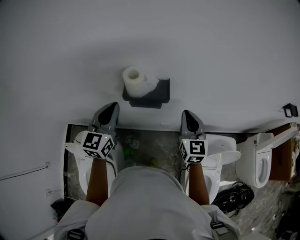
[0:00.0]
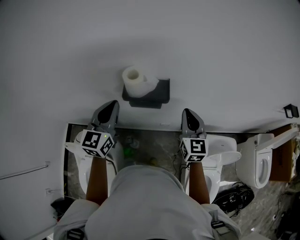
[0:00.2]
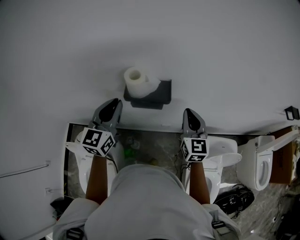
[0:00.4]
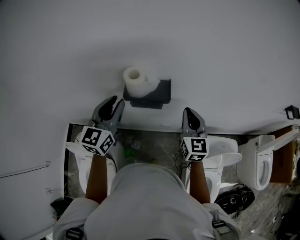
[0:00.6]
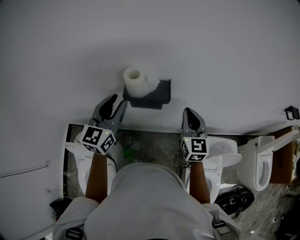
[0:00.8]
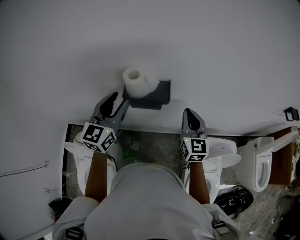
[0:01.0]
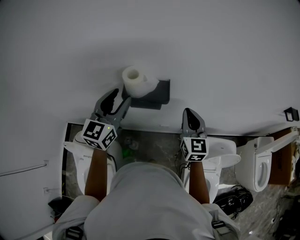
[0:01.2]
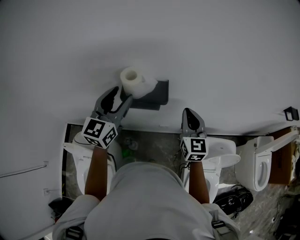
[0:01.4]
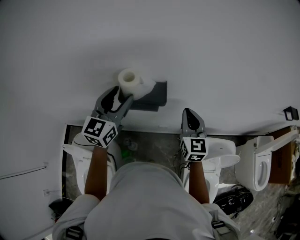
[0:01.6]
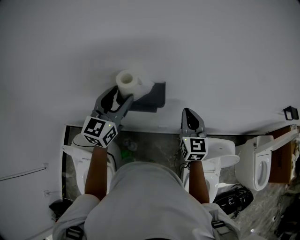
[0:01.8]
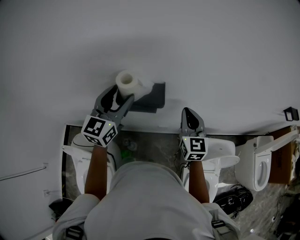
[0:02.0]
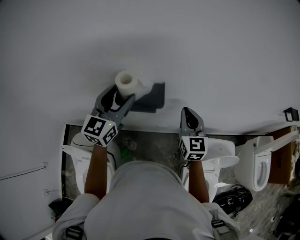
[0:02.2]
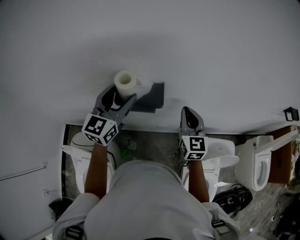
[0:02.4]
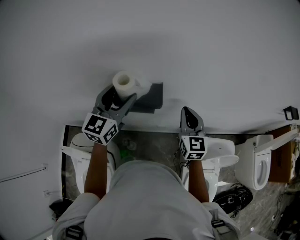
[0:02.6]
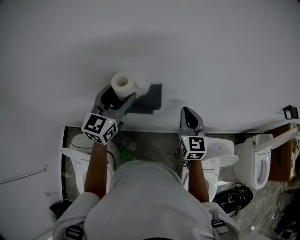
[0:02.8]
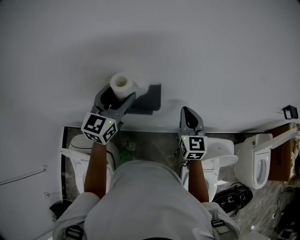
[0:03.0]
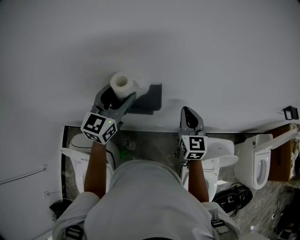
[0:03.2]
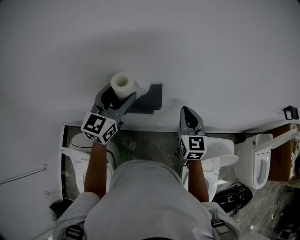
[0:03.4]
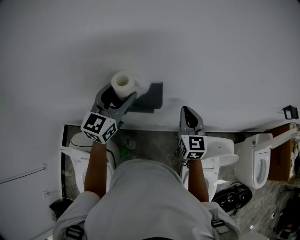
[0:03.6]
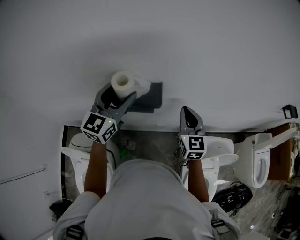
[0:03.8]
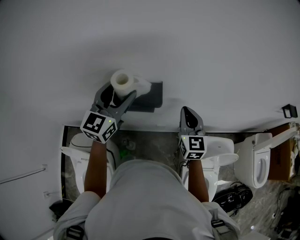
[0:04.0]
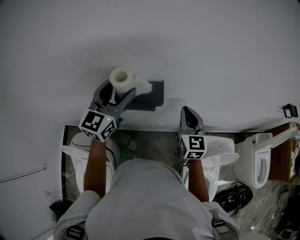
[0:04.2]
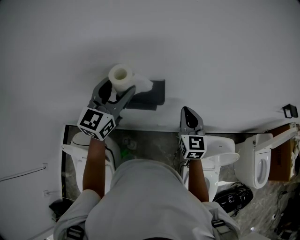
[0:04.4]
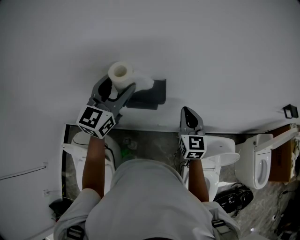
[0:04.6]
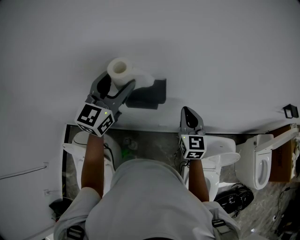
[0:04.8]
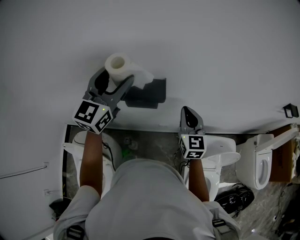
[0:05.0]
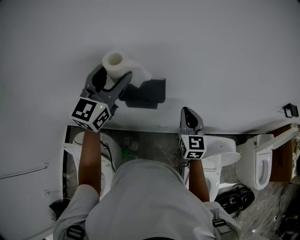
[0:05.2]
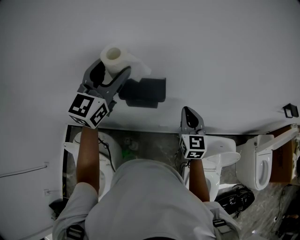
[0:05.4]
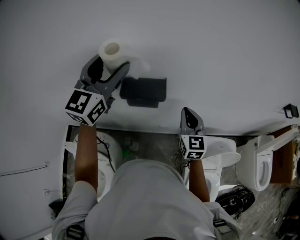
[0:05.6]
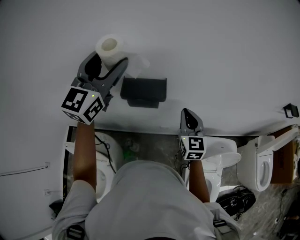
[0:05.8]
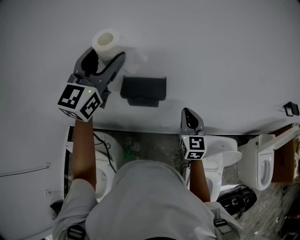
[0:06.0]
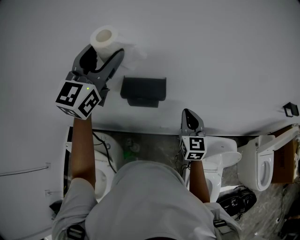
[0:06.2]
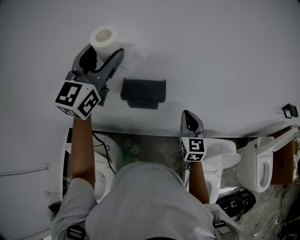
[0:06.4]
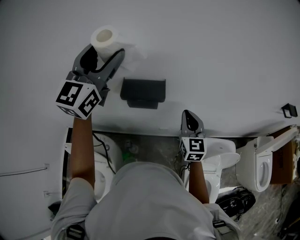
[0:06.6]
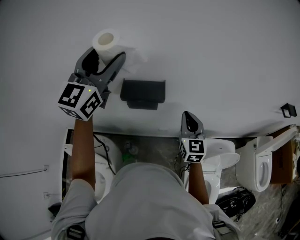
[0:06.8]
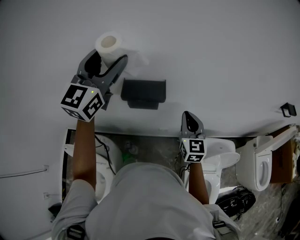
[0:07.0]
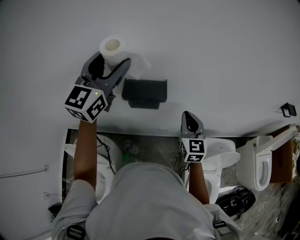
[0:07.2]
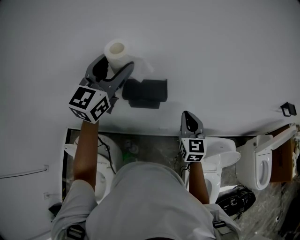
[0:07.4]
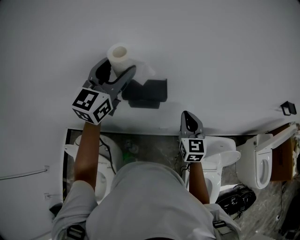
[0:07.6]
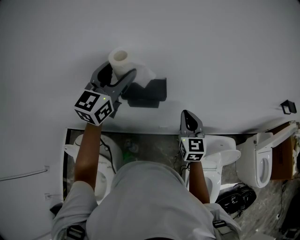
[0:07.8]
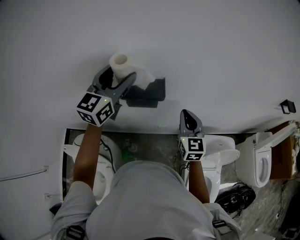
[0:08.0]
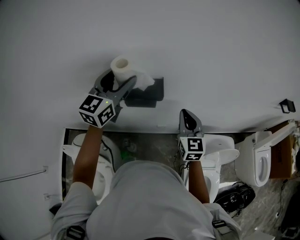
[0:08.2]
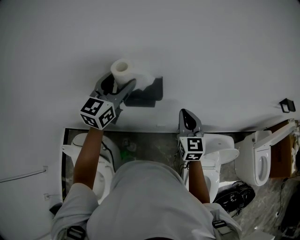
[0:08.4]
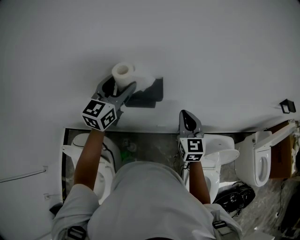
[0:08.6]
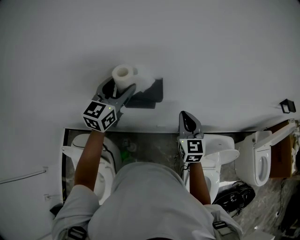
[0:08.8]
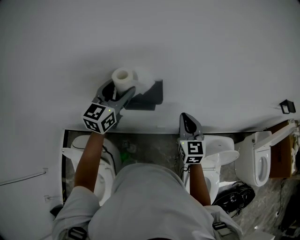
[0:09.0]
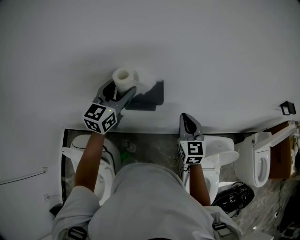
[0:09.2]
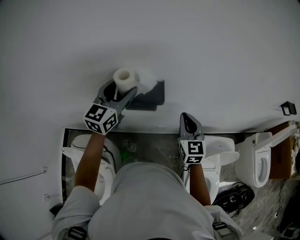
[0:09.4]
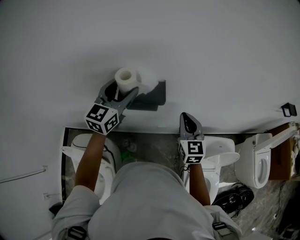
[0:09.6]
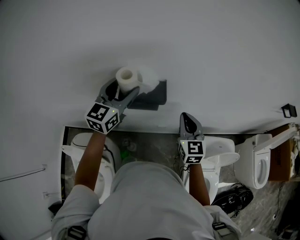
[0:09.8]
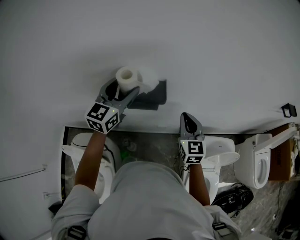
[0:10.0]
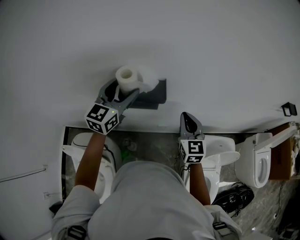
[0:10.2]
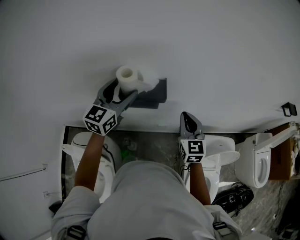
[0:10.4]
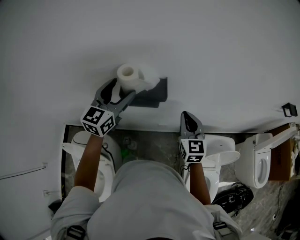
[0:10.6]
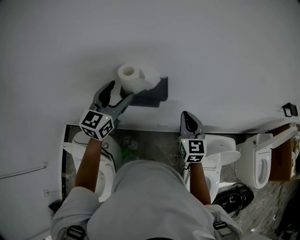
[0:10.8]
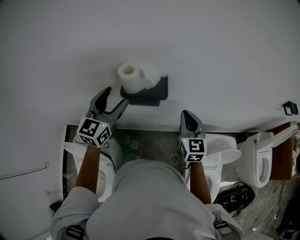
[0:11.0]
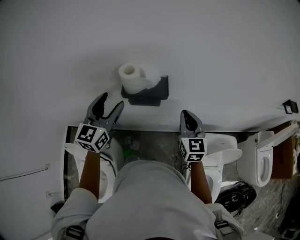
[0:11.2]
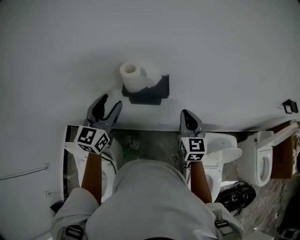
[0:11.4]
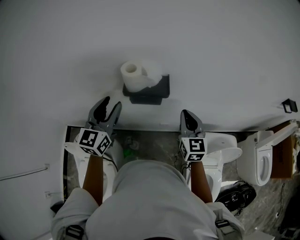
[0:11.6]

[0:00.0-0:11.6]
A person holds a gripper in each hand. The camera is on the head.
0:00.0 to 0:01.4: The left gripper ends up roughly 5 cm from where it was, and opens up.
0:01.4 to 0:02.8: The left gripper changes place by some 5 cm.
0:02.8 to 0:04.4: The grippers stay close to where they were, moving slightly.
0:04.4 to 0:05.8: The left gripper goes about 10 cm upward.
0:05.8 to 0:07.2: The grippers move only a little.
0:07.2 to 0:08.8: The left gripper is displaced downward by about 15 cm.
0:08.8 to 0:10.2: The grippers stay close to where they were, moving slightly.
0:10.2 to 0:11.6: The left gripper shifts about 10 cm backward and to the left, and closes its fingers.

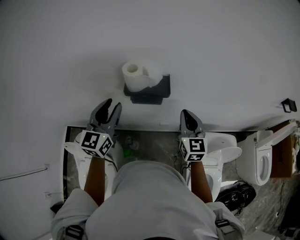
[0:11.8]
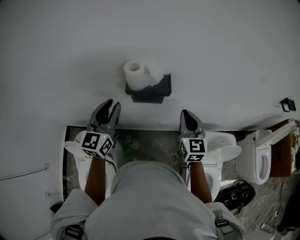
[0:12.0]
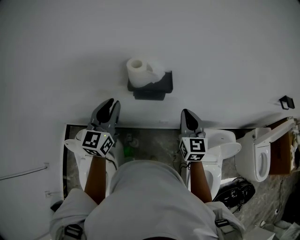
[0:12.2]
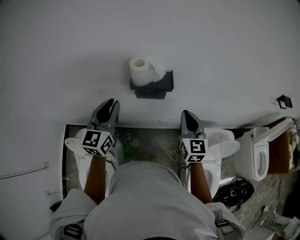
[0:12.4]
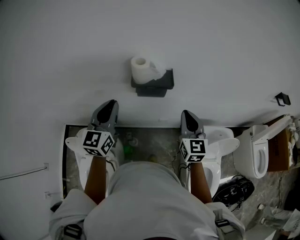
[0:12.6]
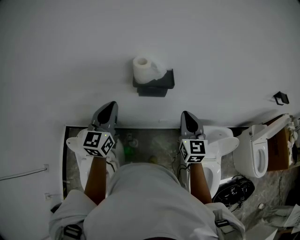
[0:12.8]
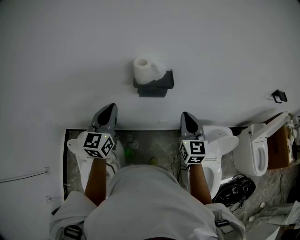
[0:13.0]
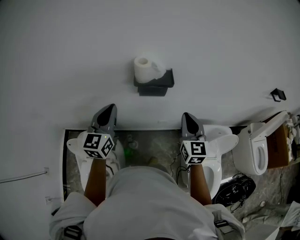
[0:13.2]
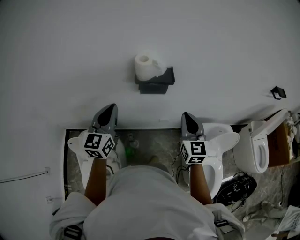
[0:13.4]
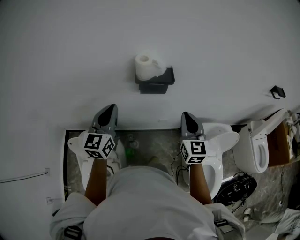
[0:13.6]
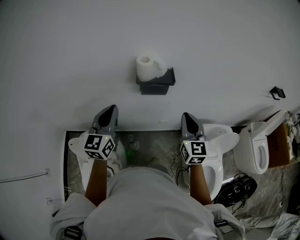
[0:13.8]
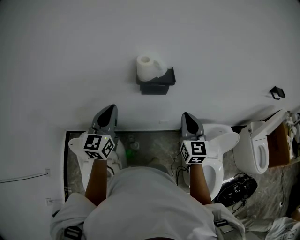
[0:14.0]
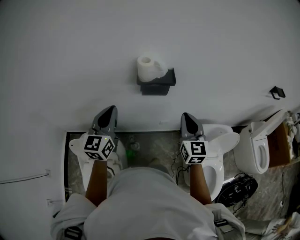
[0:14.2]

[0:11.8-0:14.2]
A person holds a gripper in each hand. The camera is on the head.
0:11.8 to 0:13.0: Both grippers move backward, about 10 cm. The left gripper closes.
0:13.0 to 0:14.2: The grippers stay close to where they were, moving slightly.

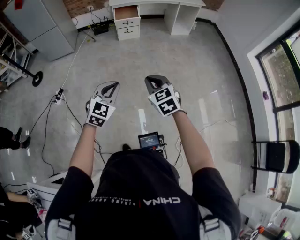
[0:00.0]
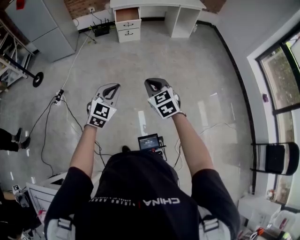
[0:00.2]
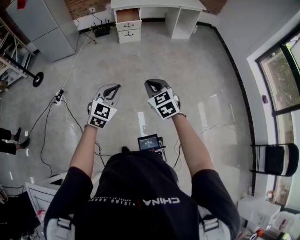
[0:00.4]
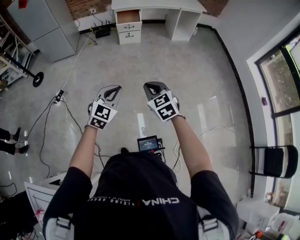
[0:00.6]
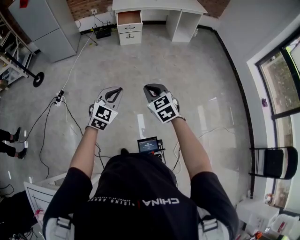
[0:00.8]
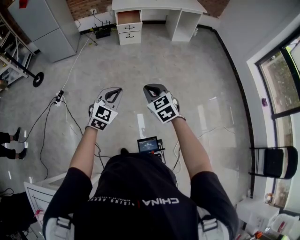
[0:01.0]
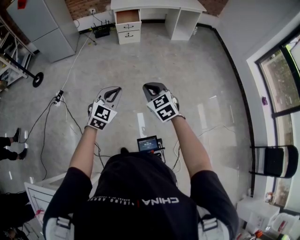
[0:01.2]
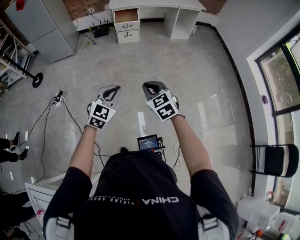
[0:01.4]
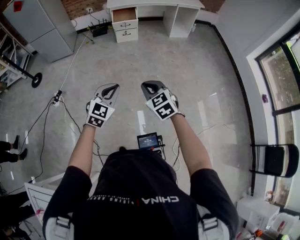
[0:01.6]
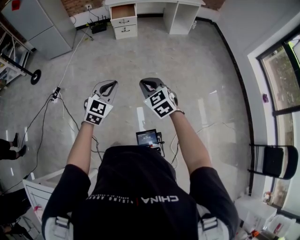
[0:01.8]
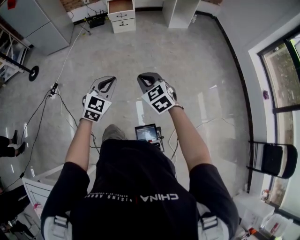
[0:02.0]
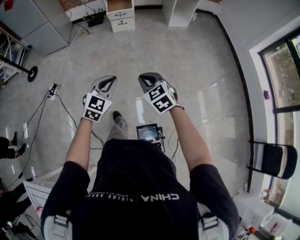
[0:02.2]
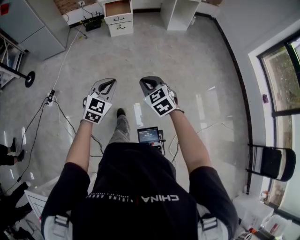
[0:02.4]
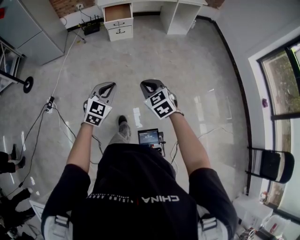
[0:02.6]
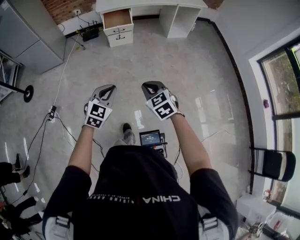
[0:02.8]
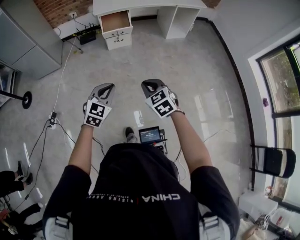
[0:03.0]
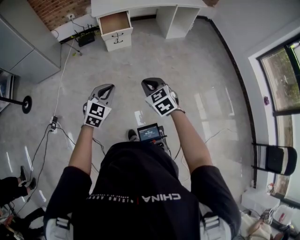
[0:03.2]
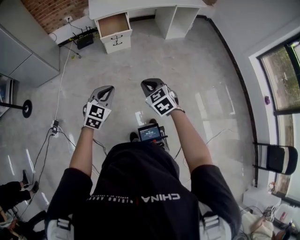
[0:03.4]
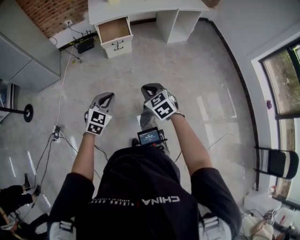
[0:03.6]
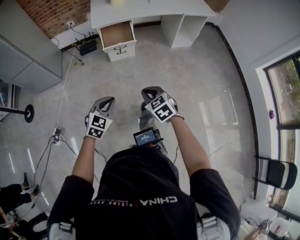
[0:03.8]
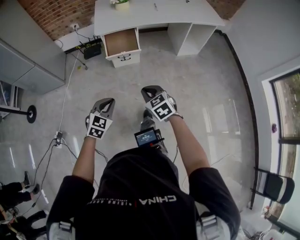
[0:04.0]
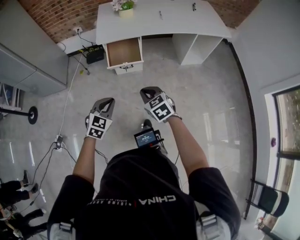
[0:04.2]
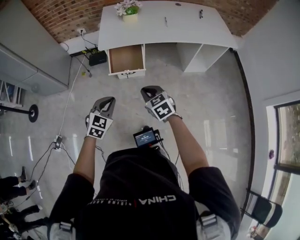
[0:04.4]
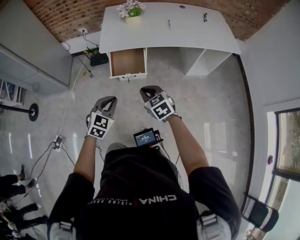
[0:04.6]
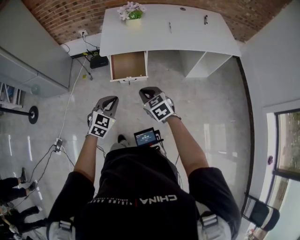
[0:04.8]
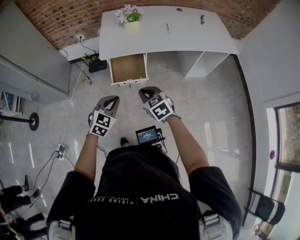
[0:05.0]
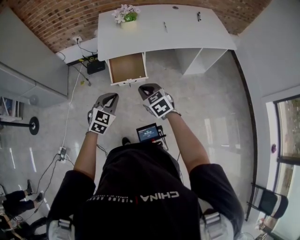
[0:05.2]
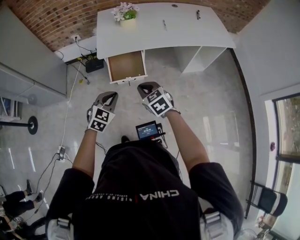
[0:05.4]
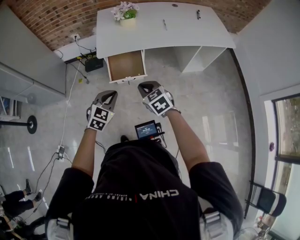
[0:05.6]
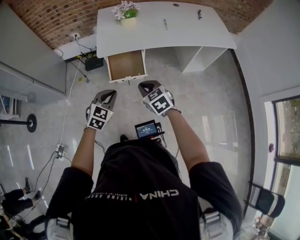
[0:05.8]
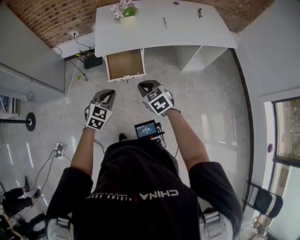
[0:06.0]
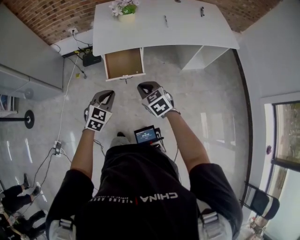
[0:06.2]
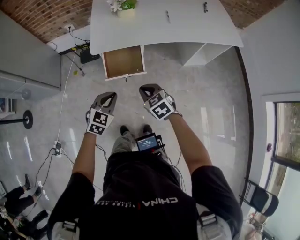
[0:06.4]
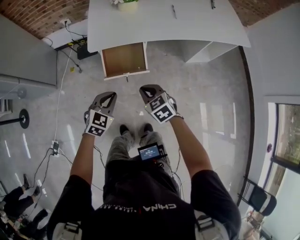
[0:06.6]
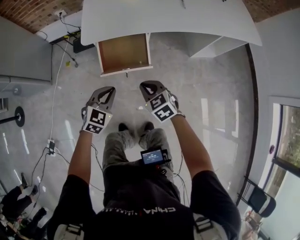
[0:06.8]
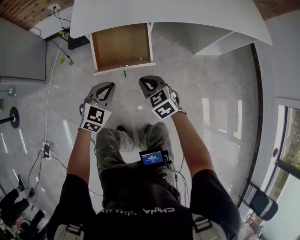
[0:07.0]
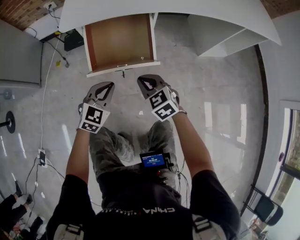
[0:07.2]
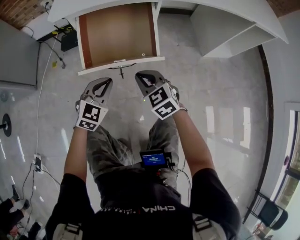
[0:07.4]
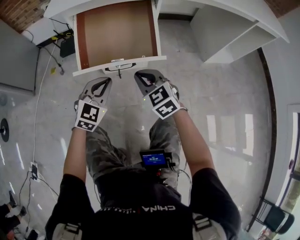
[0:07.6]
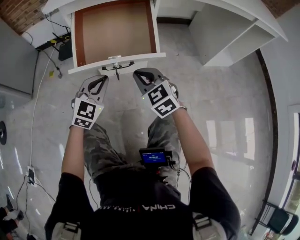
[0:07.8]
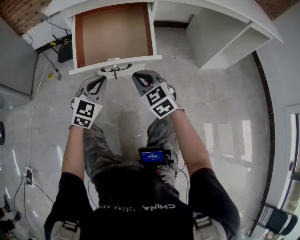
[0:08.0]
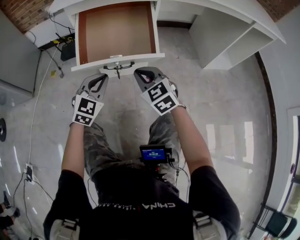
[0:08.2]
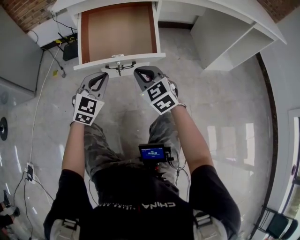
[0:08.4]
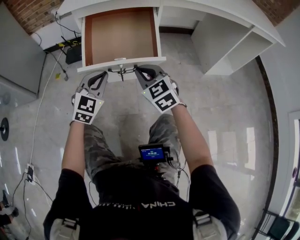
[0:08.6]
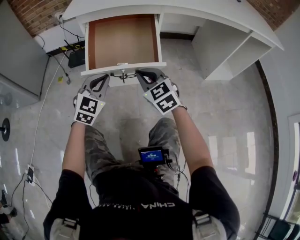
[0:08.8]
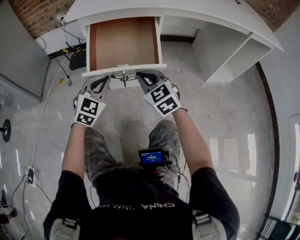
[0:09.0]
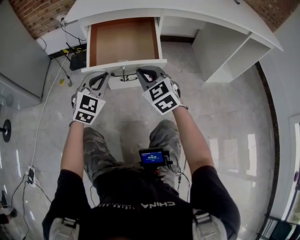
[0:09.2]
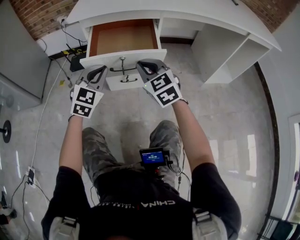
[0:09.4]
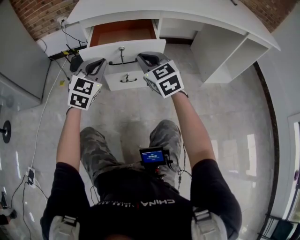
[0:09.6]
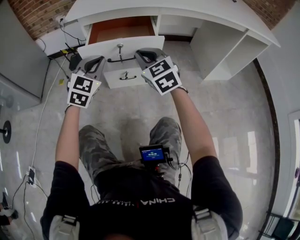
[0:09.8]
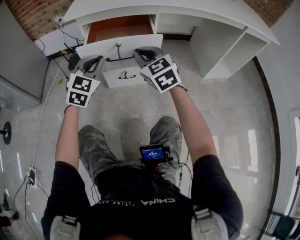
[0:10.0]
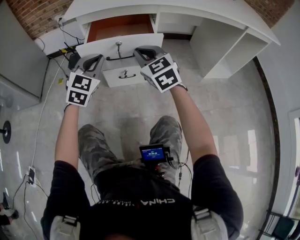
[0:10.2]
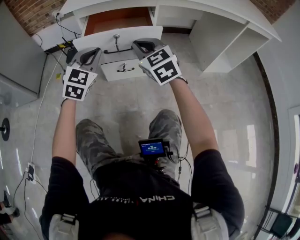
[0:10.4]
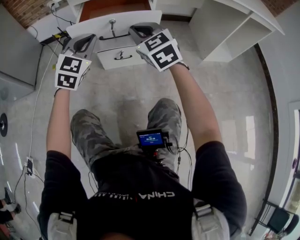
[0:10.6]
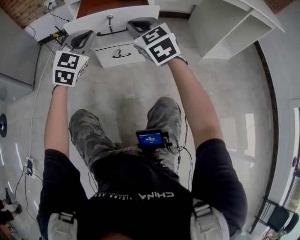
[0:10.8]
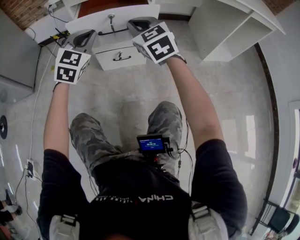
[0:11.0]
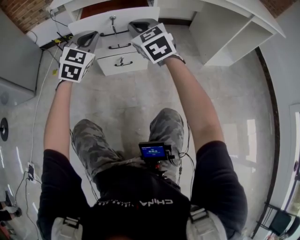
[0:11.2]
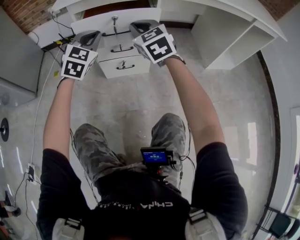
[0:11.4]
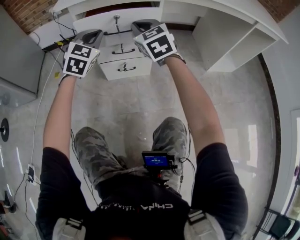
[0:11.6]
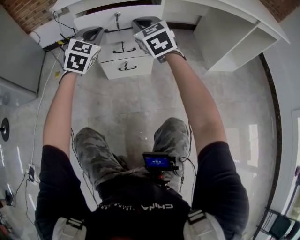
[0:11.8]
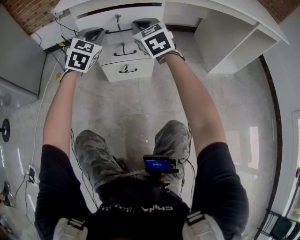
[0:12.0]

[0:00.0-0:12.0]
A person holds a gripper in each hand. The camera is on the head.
0:00.0 to 0:01.6: The grippers move only a little.
0:01.6 to 0:03.0: The two grippers go about 35 cm forward.
0:03.0 to 0:04.4: The pair of grippers is taken forward, roughly 50 cm.
0:04.4 to 0:06.0: The grippers both shift forward by approximately 10 cm.
0:06.0 to 0:07.6: The right gripper is displaced downward by some 50 cm. The left gripper heads downward and forward, covering some 50 cm.
0:07.6 to 0:09.0: The grippers make only small movements.
0:09.0 to 0:10.4: The grippers both shift upward by approximately 5 cm.
0:10.4 to 0:12.0: Both grippers move forward, approximately 10 cm.
